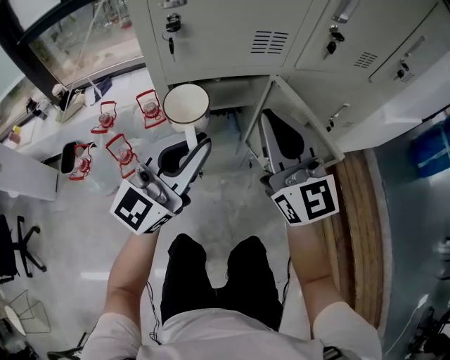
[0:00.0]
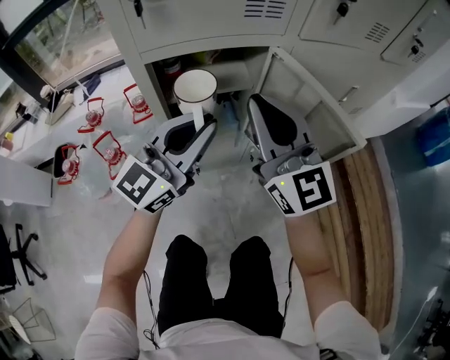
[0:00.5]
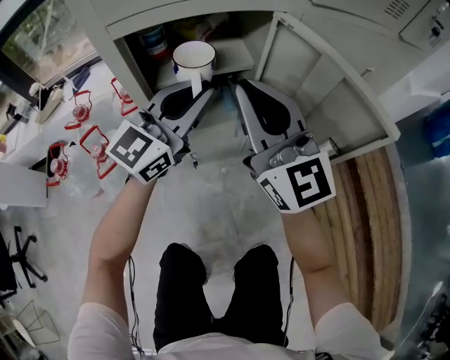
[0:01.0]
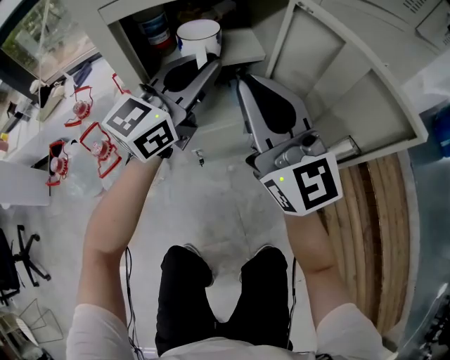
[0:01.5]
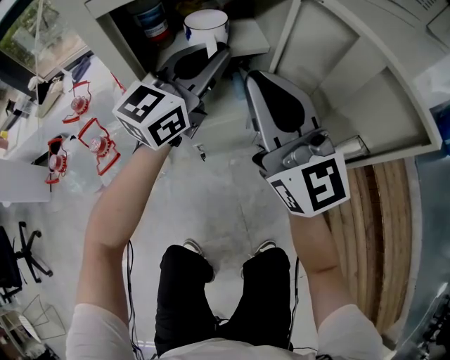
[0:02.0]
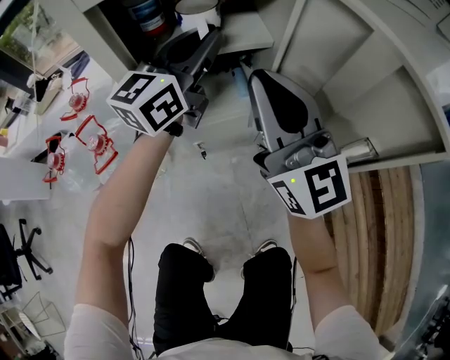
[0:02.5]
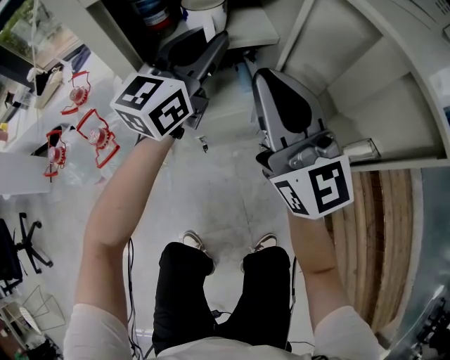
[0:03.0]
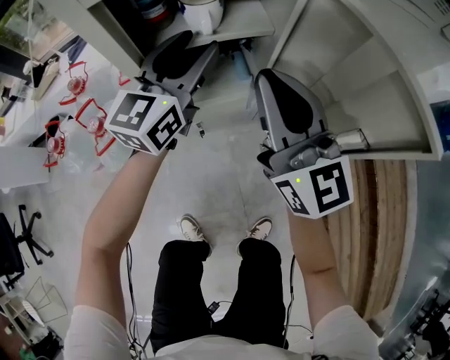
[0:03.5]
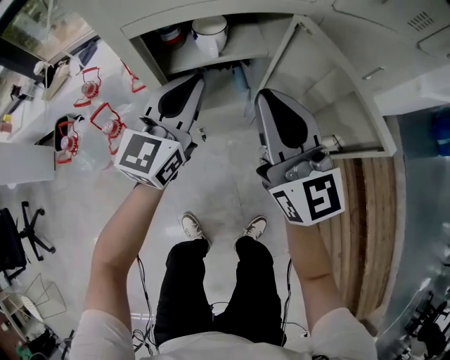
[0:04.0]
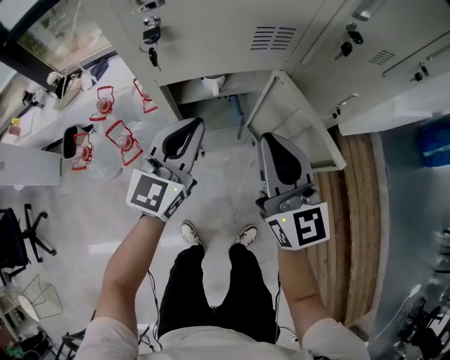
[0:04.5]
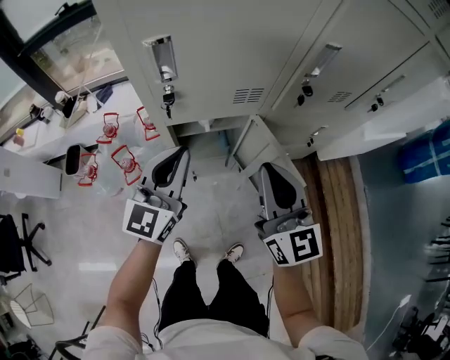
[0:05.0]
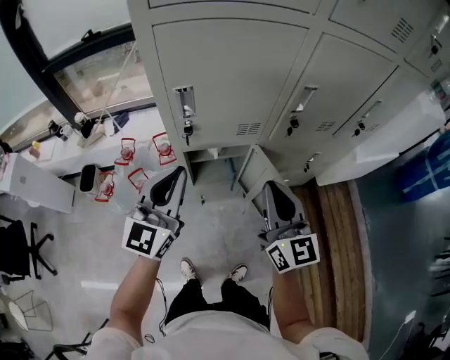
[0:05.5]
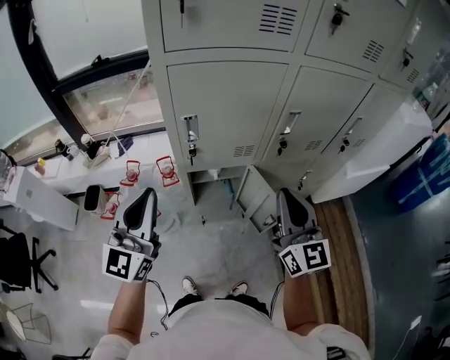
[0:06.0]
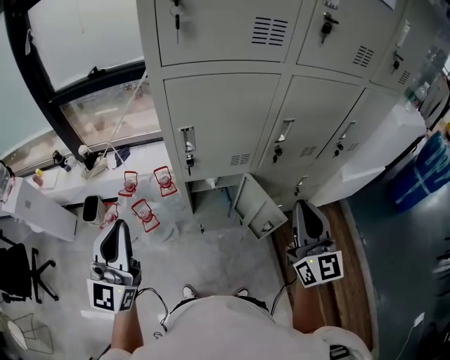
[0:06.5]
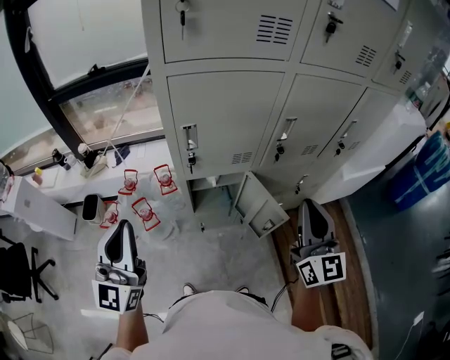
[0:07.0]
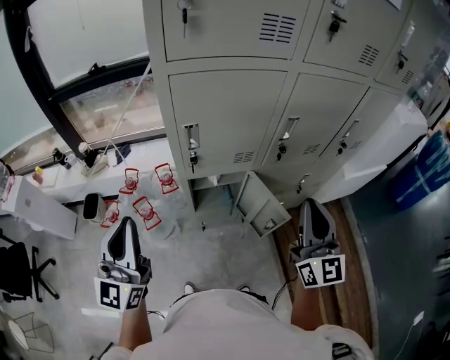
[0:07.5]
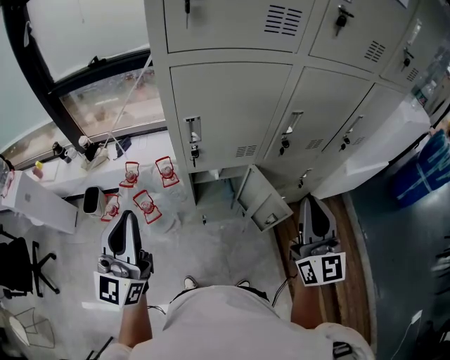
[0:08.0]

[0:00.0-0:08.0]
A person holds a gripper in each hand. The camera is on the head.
0.0 to 2.0 s: The right gripper heads downward, covering about 15 cm; the left gripper heads forward and downward, covering about 25 cm.
2.0 to 4.0 s: The left gripper travels backward by about 5 cm, and opens and closes again. The right gripper changes place by approximately 5 cm.
4.0 to 6.0 s: The left gripper heads upward and backward, covering approximately 40 cm, and turns by about 20 degrees, while the right gripper shifts about 30 cm upward.
6.0 to 8.0 s: The left gripper moves to the left, about 5 cm, while the right gripper ends up approximately 5 cm from where it was.

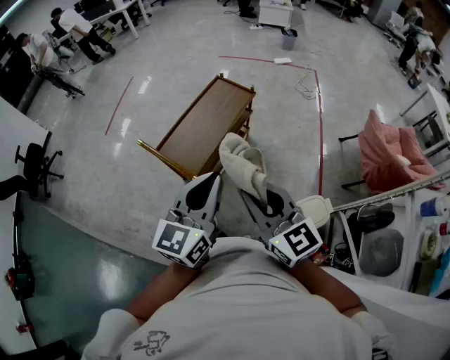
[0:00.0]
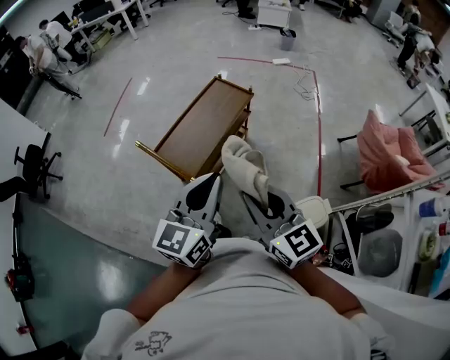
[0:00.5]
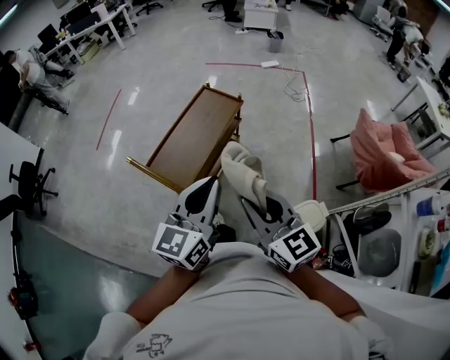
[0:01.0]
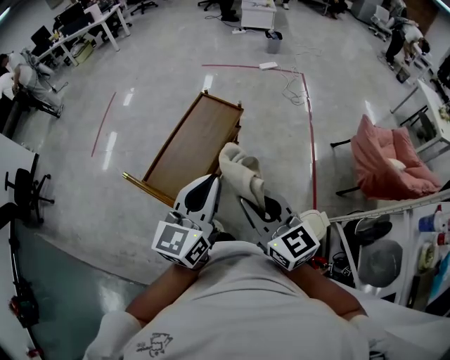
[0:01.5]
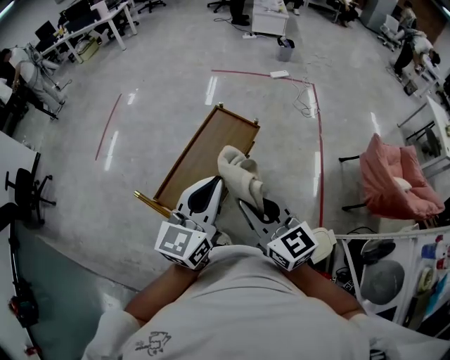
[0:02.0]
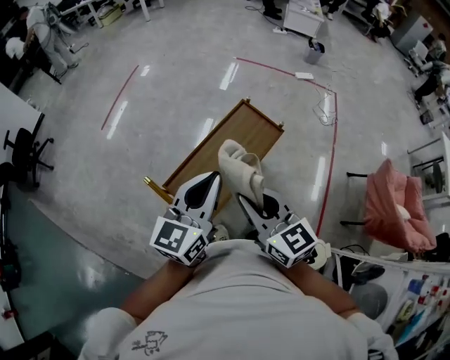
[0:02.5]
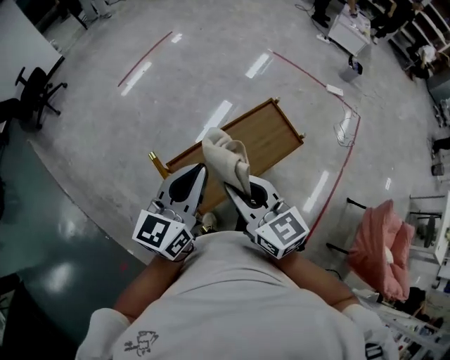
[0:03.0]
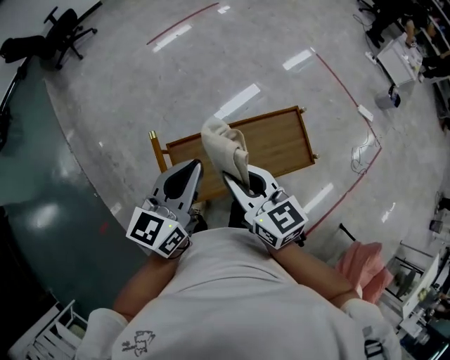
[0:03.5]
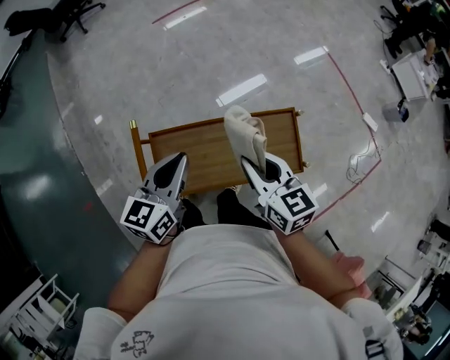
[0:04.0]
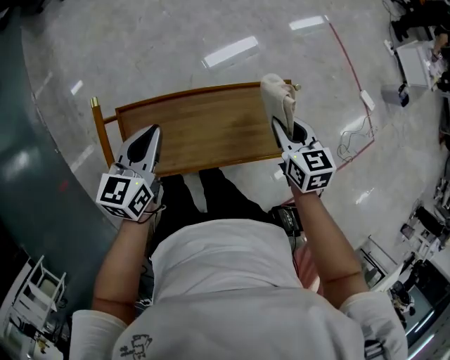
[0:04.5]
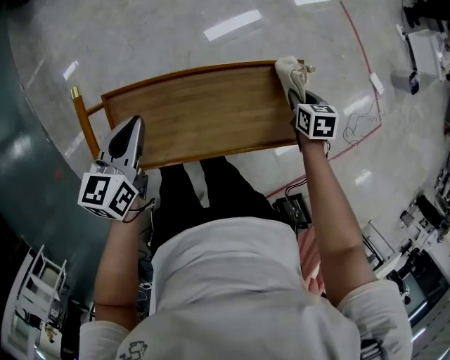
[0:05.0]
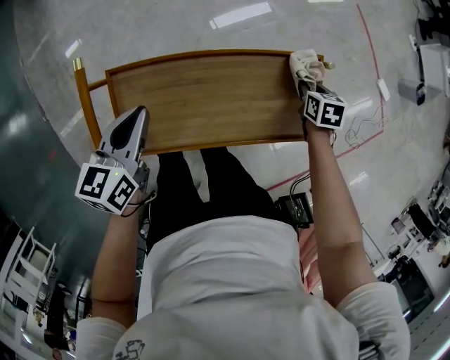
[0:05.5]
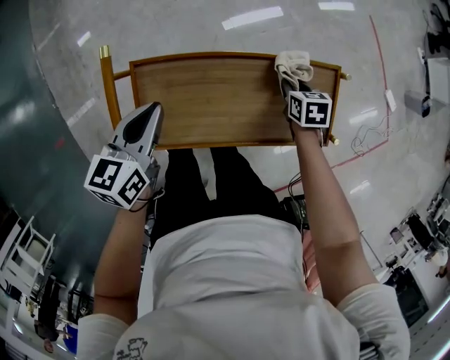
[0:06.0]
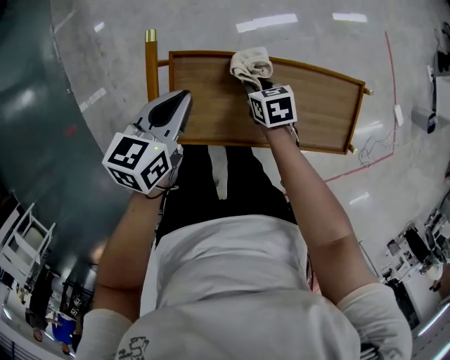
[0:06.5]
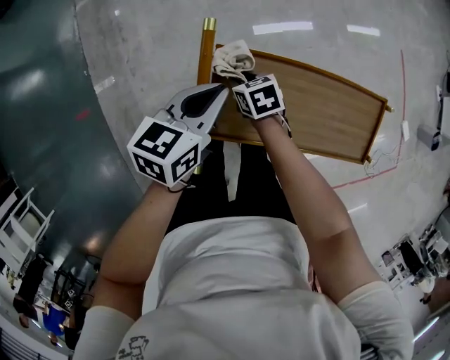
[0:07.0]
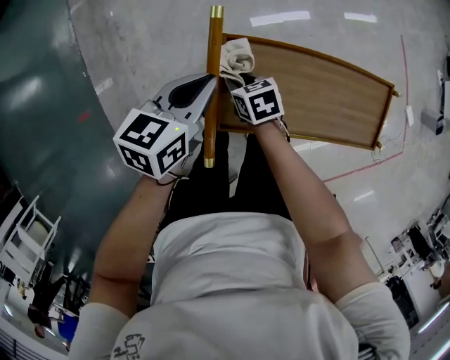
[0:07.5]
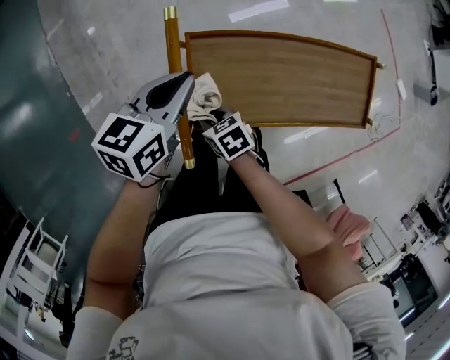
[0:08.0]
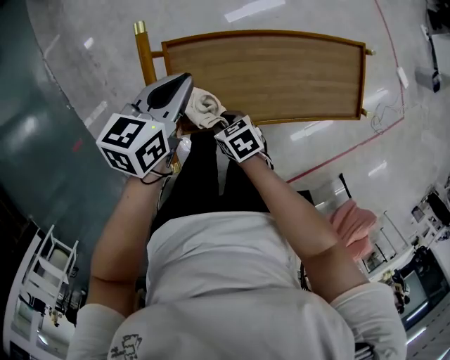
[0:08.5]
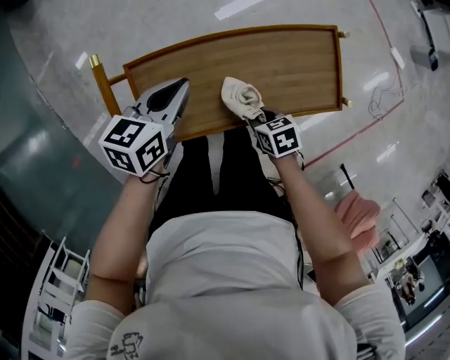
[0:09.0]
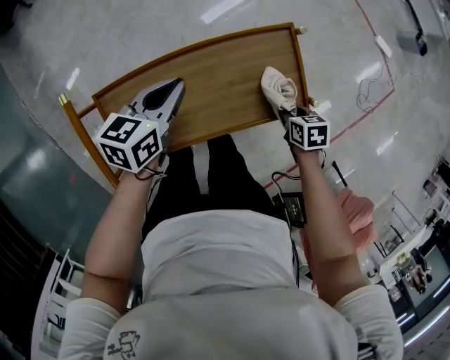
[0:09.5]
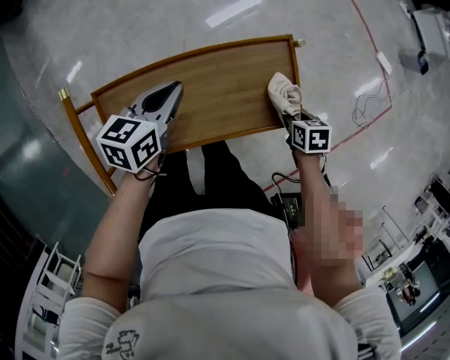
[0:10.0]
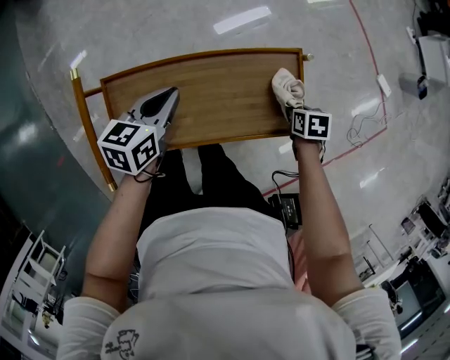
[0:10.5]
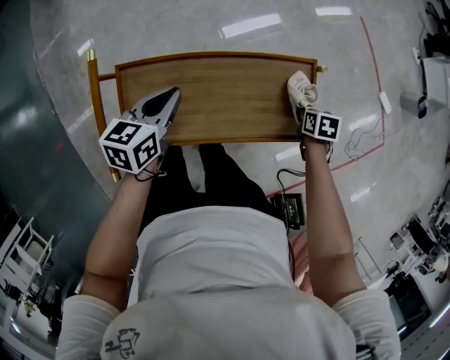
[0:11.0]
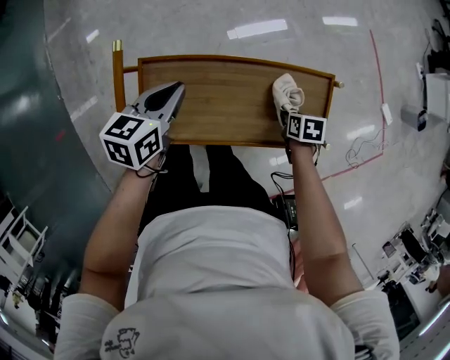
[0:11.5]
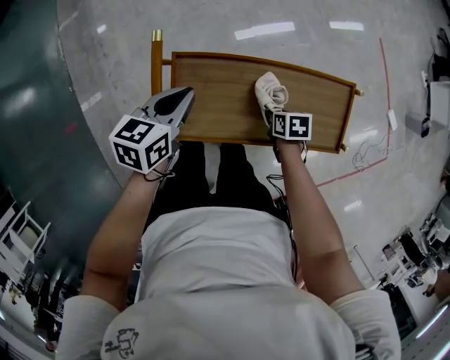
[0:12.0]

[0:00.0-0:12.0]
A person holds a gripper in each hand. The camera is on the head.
0.0 to 2.0 s: The two grippers go some 25 cm forward.
2.0 to 4.0 s: The right gripper shifts by approximately 35 cm, and swivels approximately 50 degrees. The left gripper changes place by roughly 30 cm, and rotates some 50 degrees.
4.0 to 6.0 s: The left gripper is displaced downward by about 20 cm. Meanwhile the right gripper heads downward, covering some 35 cm, and tilts its fingers some 40 degrees downward.
6.0 to 8.0 s: The right gripper heads to the left, covering roughly 40 cm, and swivels roughly 30 degrees, while the left gripper heads to the left, covering about 10 cm.
8.0 to 10.0 s: The left gripper shifts by approximately 30 cm, while the right gripper shifts by about 60 cm, and turns by some 40 degrees.
10.0 to 12.0 s: The left gripper moves some 25 cm. Meanwhile the right gripper moves some 30 cm.

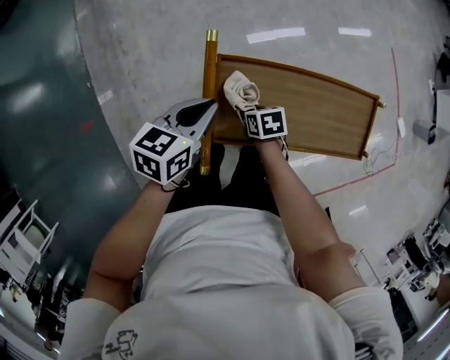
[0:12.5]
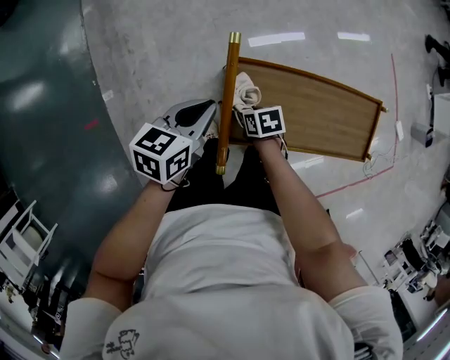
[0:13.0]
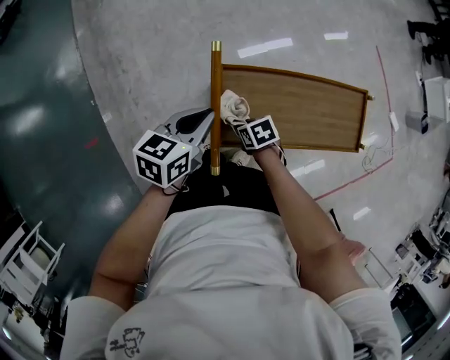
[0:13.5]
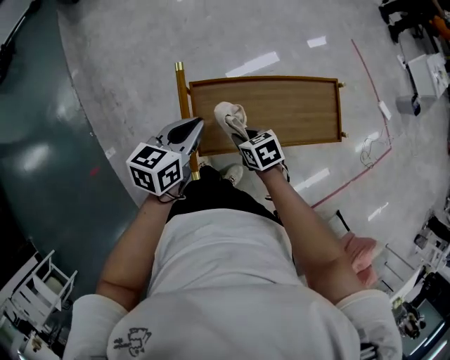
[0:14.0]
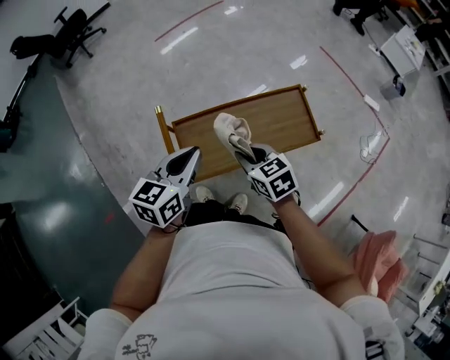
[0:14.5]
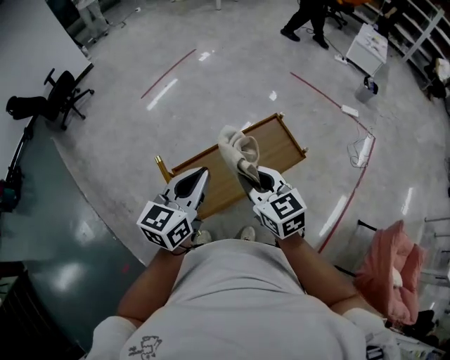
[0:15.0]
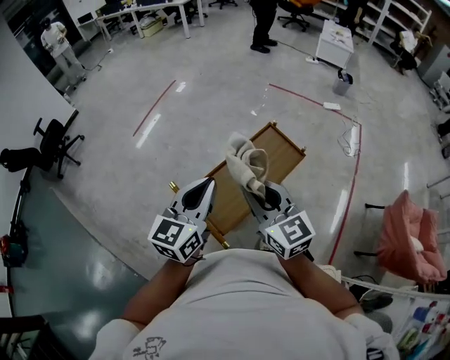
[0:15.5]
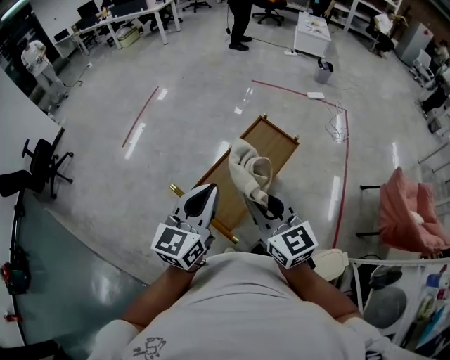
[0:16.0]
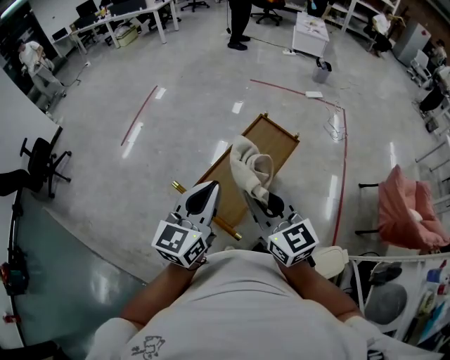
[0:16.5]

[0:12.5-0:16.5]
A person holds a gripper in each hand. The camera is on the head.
12.5 to 14.5 s: The right gripper goes approximately 30 cm upward, and swivels roughly 40 degrees, while the left gripper heads upward, covering approximately 20 cm, and changes its angle by some 20 degrees.
14.5 to 16.5 s: The grippers both shift upward by roughly 20 cm. The left gripper rotates some 40 degrees, while the right gripper tilts its fingers about 30 degrees upward.

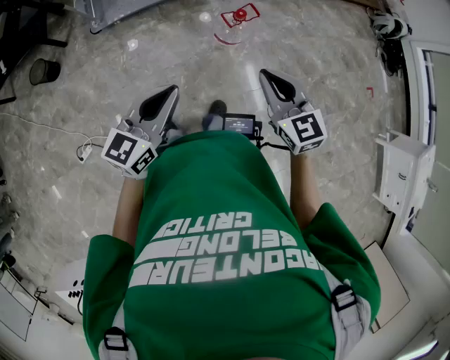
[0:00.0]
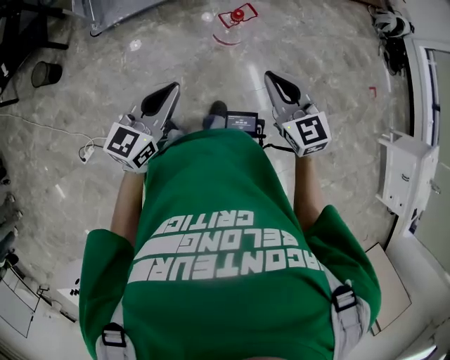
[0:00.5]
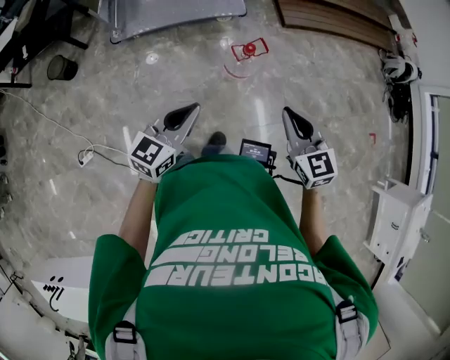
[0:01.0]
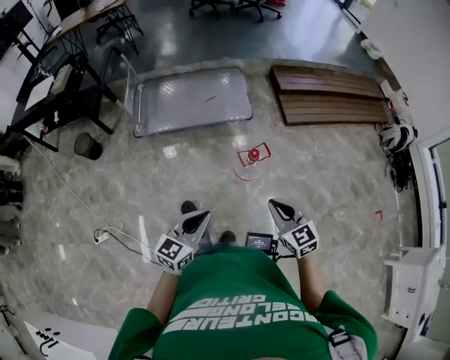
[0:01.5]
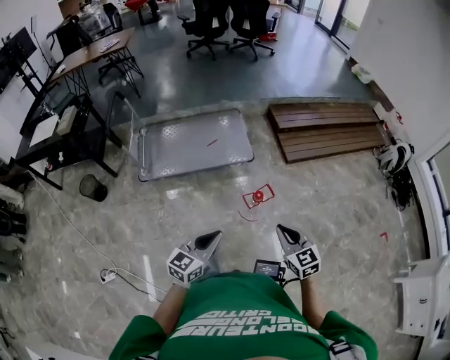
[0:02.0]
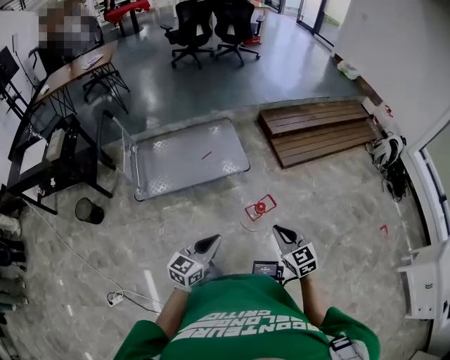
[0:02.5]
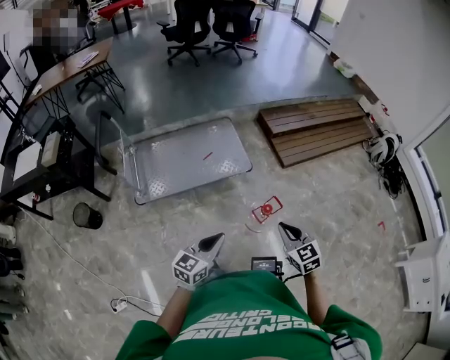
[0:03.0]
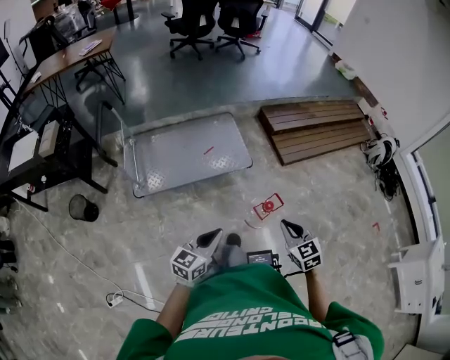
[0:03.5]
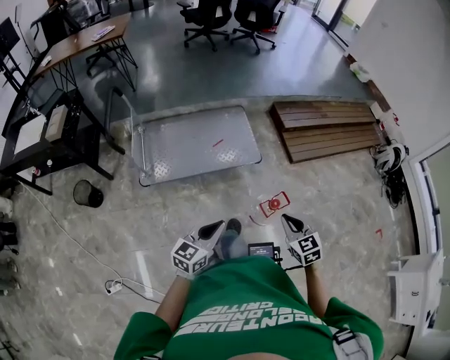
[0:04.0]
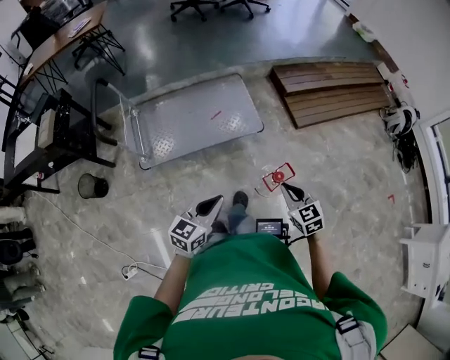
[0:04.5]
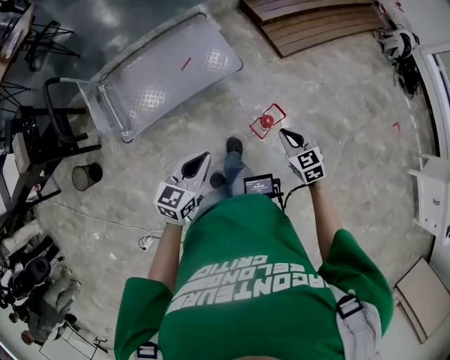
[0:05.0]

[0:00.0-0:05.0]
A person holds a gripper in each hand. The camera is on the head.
0.0 to 2.5 s: Both grippers travel together forward, some 20 cm.
2.5 to 5.0 s: The left gripper is displaced forward by approximately 15 cm; the right gripper goes some 20 cm forward and downward.
